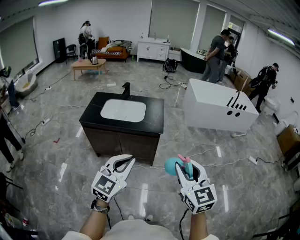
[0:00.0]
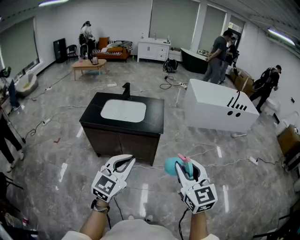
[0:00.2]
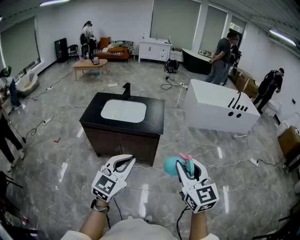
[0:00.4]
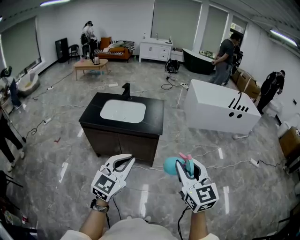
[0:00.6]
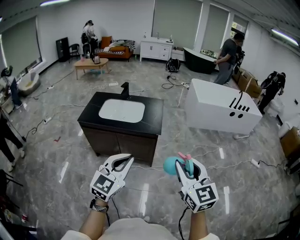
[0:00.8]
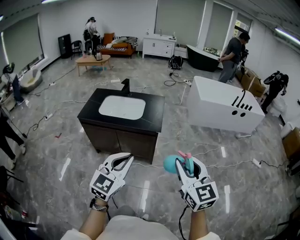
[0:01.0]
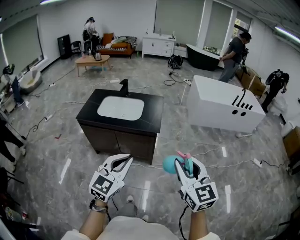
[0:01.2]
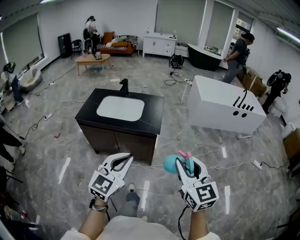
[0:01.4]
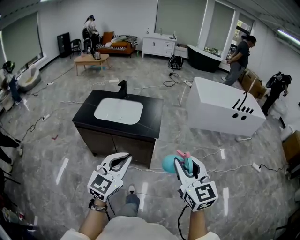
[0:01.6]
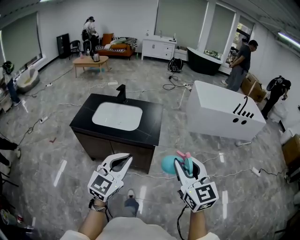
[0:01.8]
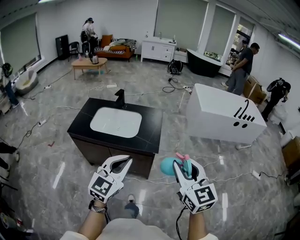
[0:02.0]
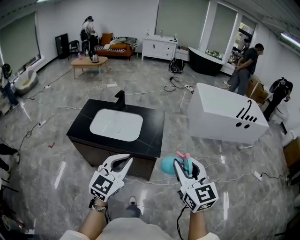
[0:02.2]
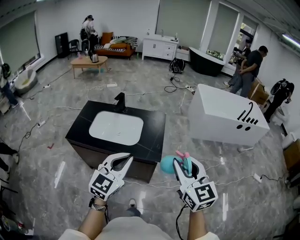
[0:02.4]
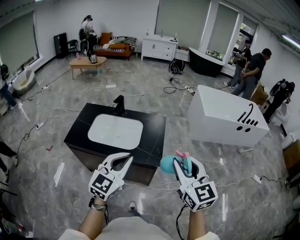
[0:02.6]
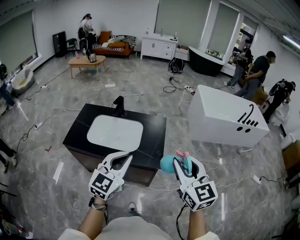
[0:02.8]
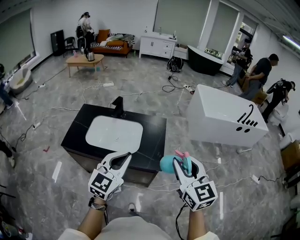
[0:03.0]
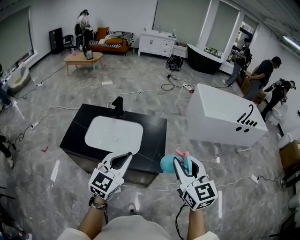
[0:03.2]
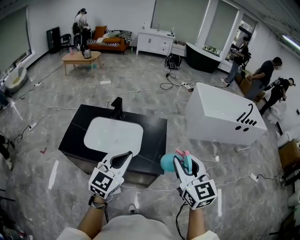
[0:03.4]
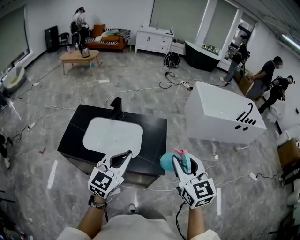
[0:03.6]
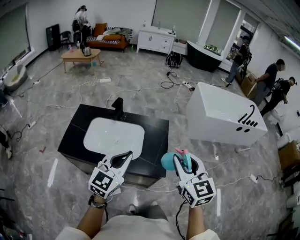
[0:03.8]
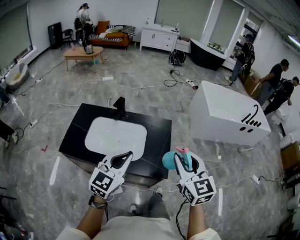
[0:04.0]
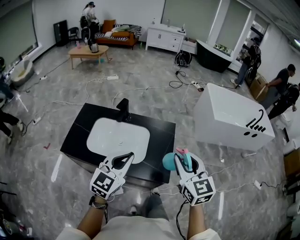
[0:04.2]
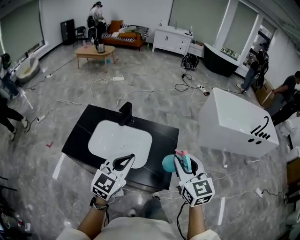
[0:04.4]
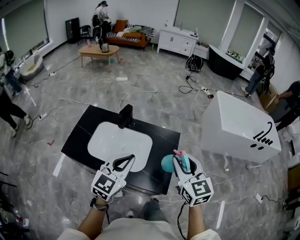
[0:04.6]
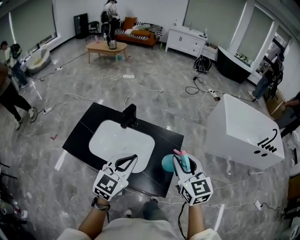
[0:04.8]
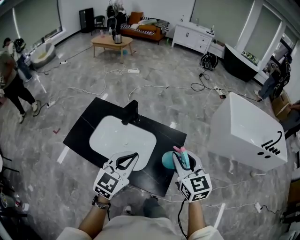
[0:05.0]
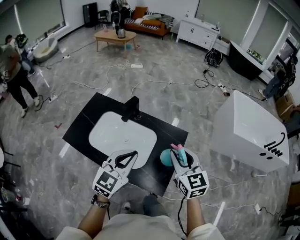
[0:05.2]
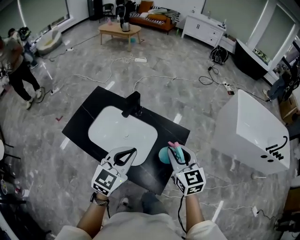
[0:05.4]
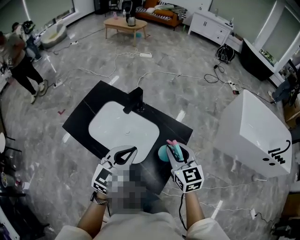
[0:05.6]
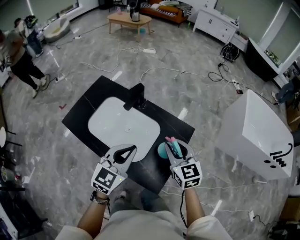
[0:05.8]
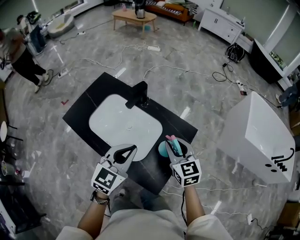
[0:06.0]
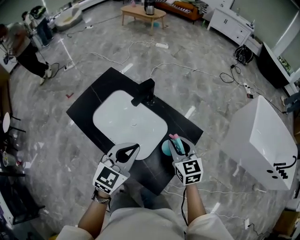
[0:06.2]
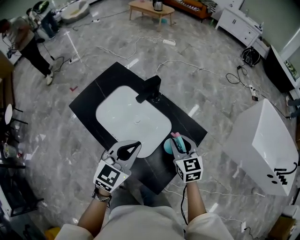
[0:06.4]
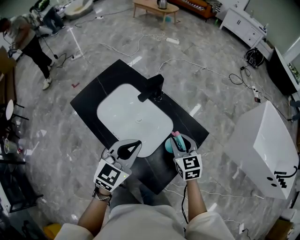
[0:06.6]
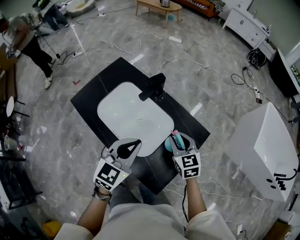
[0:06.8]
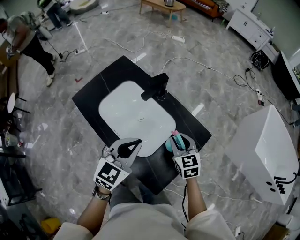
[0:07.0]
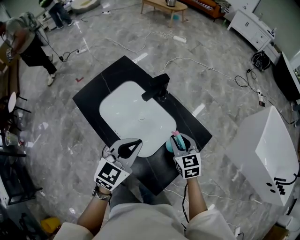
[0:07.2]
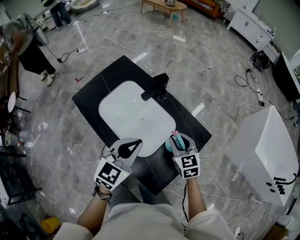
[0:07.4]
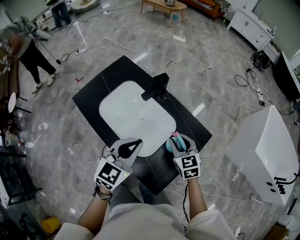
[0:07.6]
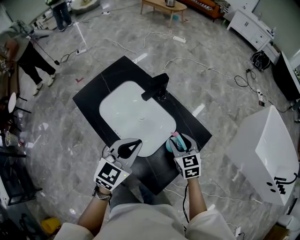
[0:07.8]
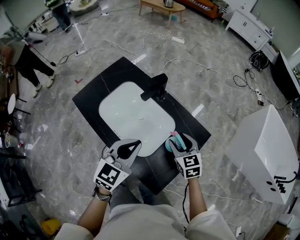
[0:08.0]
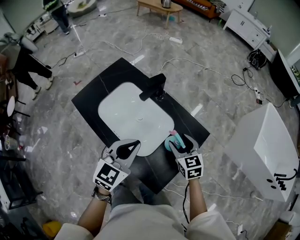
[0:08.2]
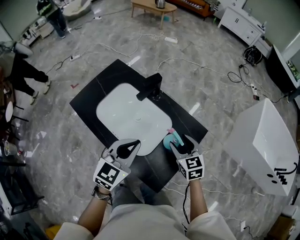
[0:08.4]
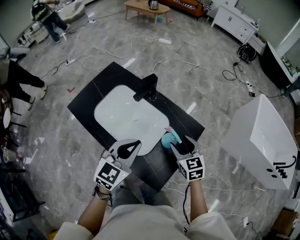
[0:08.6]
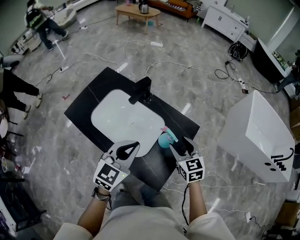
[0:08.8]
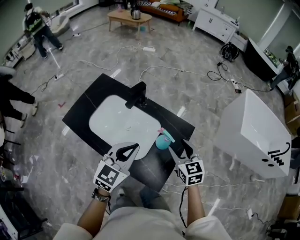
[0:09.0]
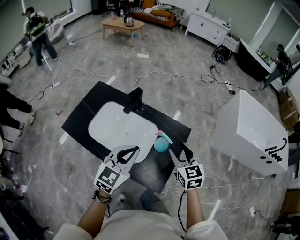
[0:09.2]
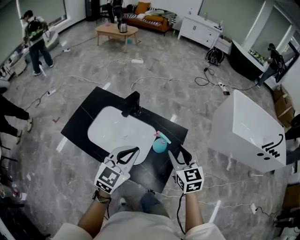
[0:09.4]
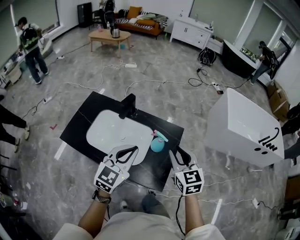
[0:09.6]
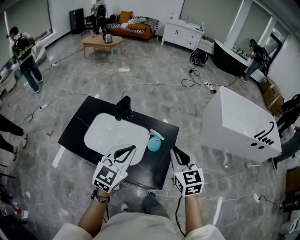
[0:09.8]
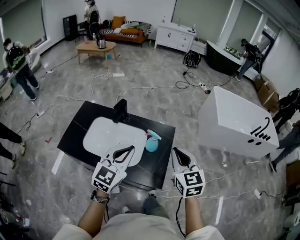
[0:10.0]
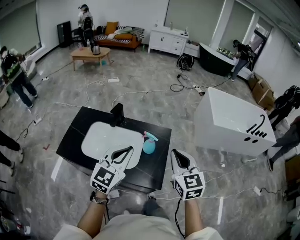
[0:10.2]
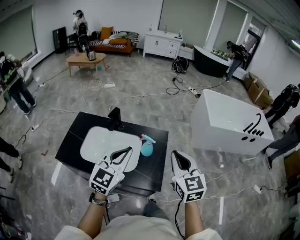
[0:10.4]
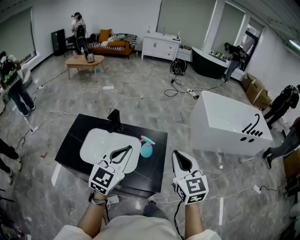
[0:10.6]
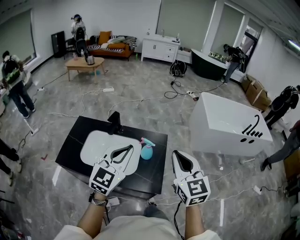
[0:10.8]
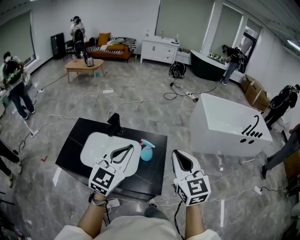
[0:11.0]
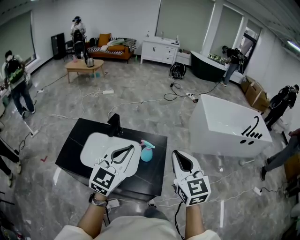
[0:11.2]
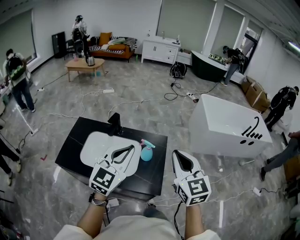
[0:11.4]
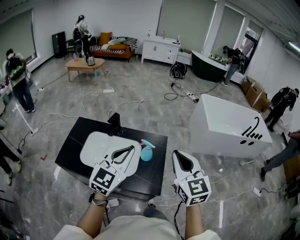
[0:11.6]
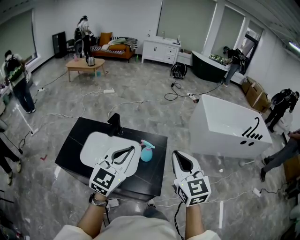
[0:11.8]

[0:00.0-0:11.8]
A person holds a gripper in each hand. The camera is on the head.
0:00.0 to 0:01.4: Both grippers move forward and to the right, some 10 cm.
0:01.4 to 0:03.0: The grippers both shift forward by approximately 30 cm.
0:03.0 to 0:04.4: The grippers both shift forward by approximately 15 cm.
0:04.4 to 0:06.0: The left gripper travels forward and downward by approximately 15 cm, and turns by about 20 degrees, while the right gripper travels forward and downward by about 25 cm, and rotates some 30 degrees.
0:06.0 to 0:07.4: The right gripper moves downward, roughly 10 cm.
0:07.4 to 0:08.8: The right gripper goes approximately 5 cm backward, and opens.
0:08.8 to 0:10.4: The right gripper moves upward and backward, some 30 cm, changes its angle by about 30 degrees, and closes. Meanwhile the left gripper heads upward and backward, covering approximately 15 cm, and rotates about 20 degrees.
0:10.4 to 0:11.8: There are only small adjustments of the grippers.

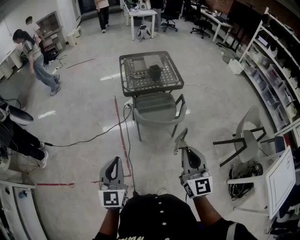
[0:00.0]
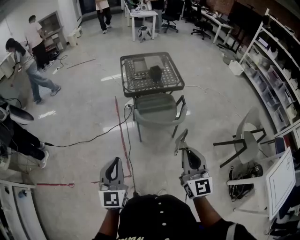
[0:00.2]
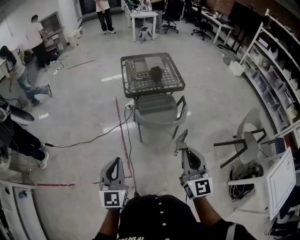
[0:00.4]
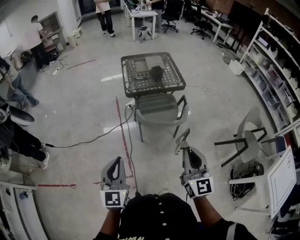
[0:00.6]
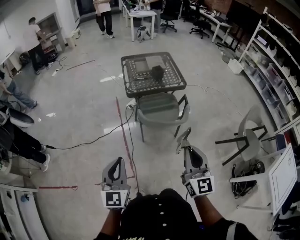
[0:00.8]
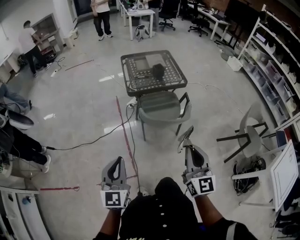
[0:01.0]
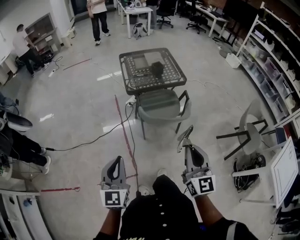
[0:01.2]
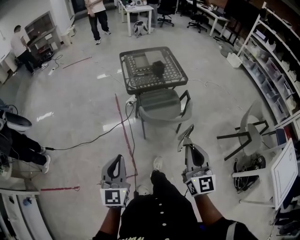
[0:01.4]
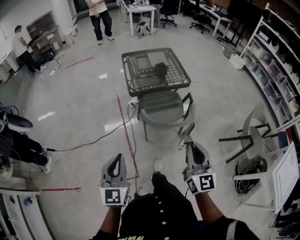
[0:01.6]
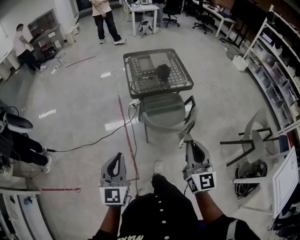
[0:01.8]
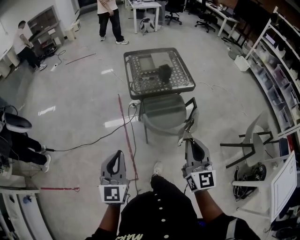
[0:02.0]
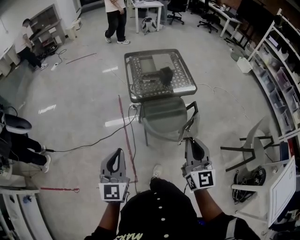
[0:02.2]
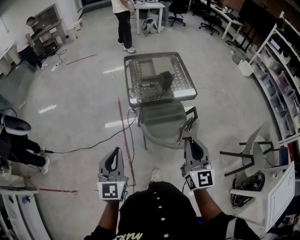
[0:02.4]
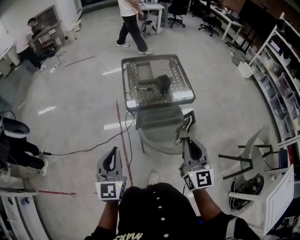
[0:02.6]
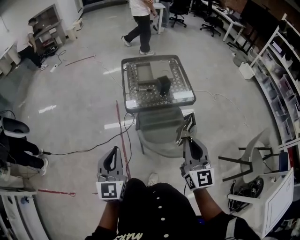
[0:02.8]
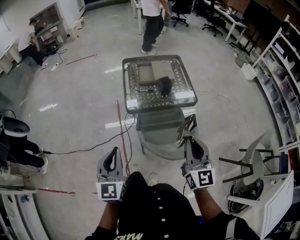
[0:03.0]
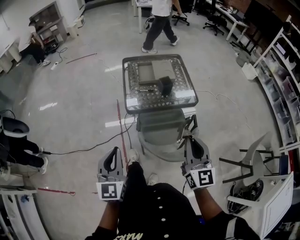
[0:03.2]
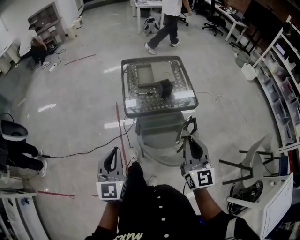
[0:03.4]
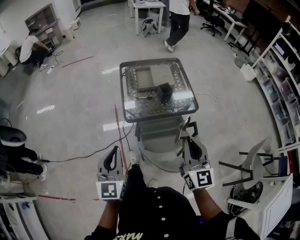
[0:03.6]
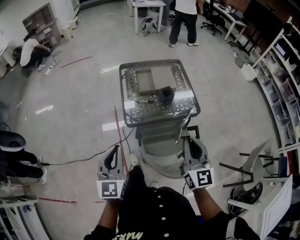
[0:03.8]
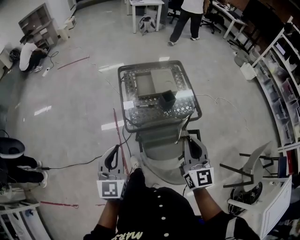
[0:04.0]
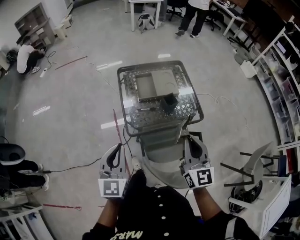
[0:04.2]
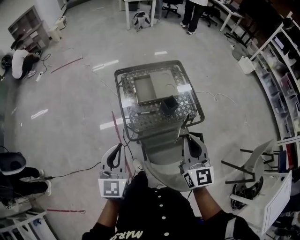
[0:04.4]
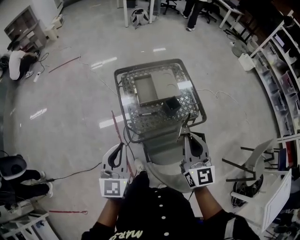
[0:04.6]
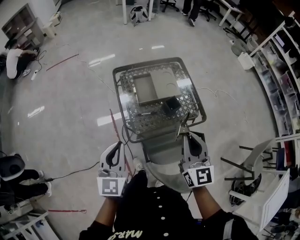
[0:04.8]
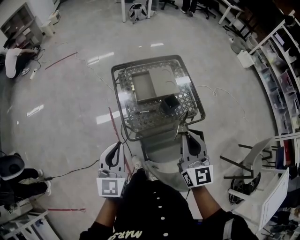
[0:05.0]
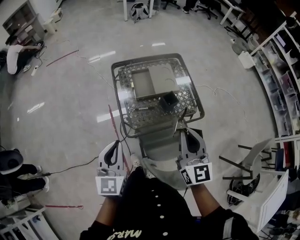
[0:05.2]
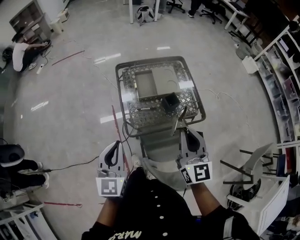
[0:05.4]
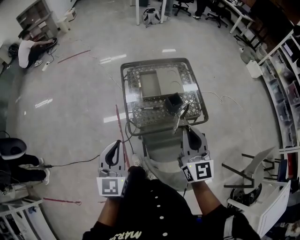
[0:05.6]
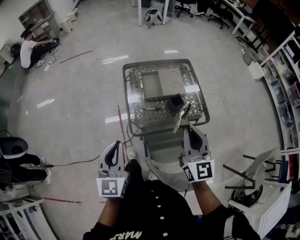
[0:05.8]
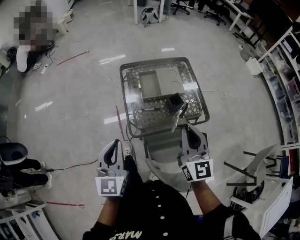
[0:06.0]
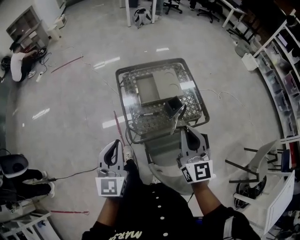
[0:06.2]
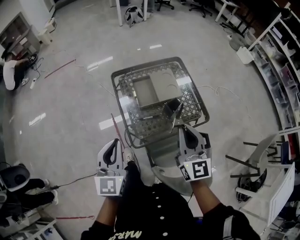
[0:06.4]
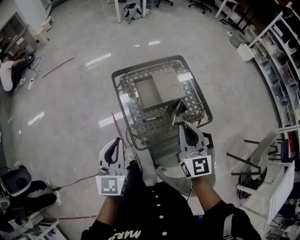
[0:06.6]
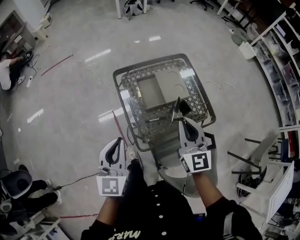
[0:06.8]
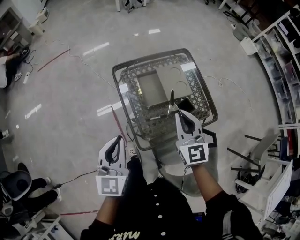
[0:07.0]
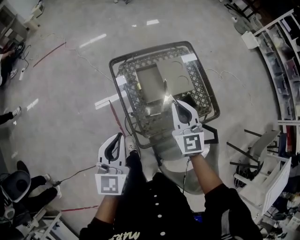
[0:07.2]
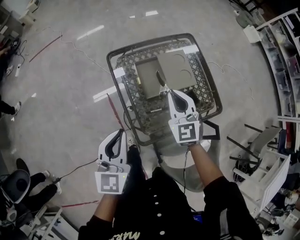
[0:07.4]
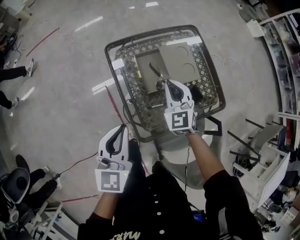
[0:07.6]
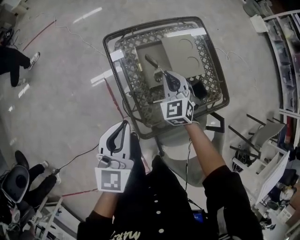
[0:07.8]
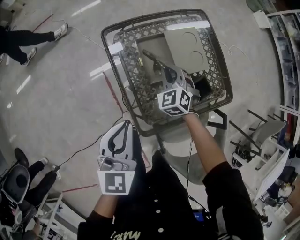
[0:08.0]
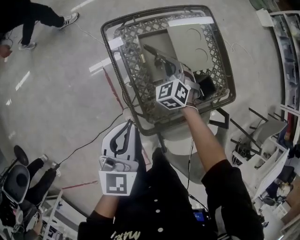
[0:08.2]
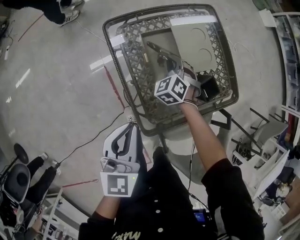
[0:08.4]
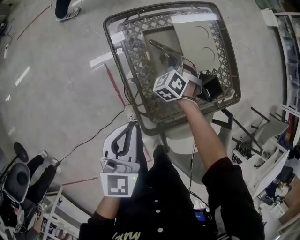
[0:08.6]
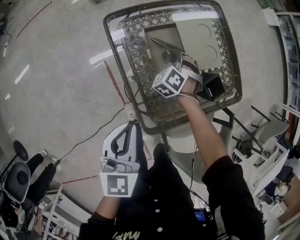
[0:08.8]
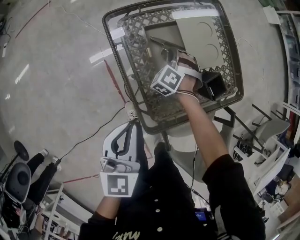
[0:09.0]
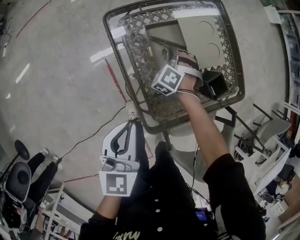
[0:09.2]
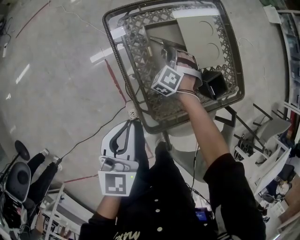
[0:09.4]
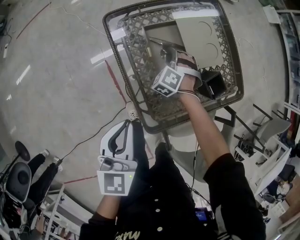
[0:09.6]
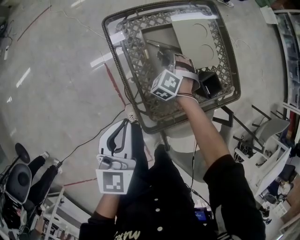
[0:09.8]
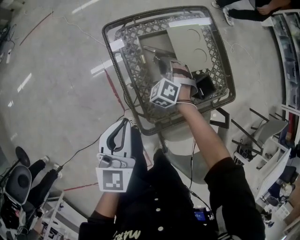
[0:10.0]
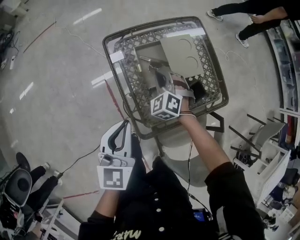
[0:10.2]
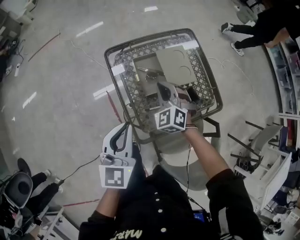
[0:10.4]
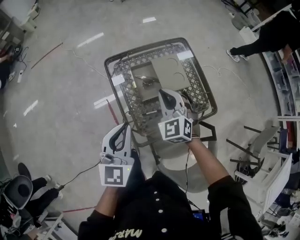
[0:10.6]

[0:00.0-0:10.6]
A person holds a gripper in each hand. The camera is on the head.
0:00.0 to 0:01.6: Both grippers move forward and to the left, about 10 cm.
0:01.6 to 0:03.0: Both grippers move forward, roughly 25 cm.
0:03.0 to 0:04.6: Both grippers move forward, roughly 30 cm.
0:04.6 to 0:06.0: There are only small adjustments of the grippers.
0:06.0 to 0:07.6: Both grippers move forward and downward, about 35 cm. The right gripper swivels roughly 40 degrees.
0:07.6 to 0:09.0: The right gripper heads downward, covering about 25 cm, and changes its angle by approximately 50 degrees. Meanwhile the left gripper moves downward, about 10 cm.
0:09.0 to 0:10.6: The left gripper is displaced upward by some 15 cm. Meanwhile the right gripper moves upward and backward, roughly 30 cm, swivels approximately 40 degrees, and opens, then closes once more.

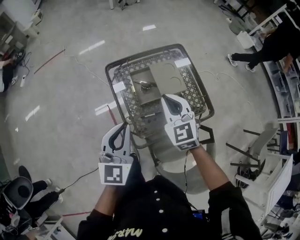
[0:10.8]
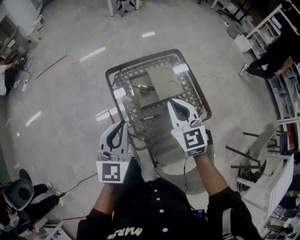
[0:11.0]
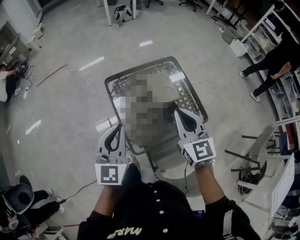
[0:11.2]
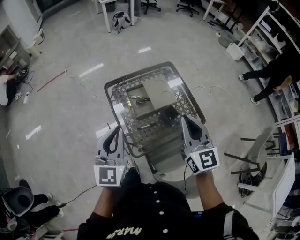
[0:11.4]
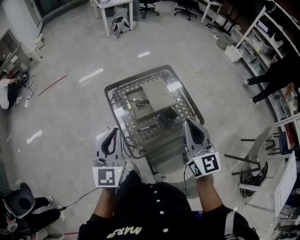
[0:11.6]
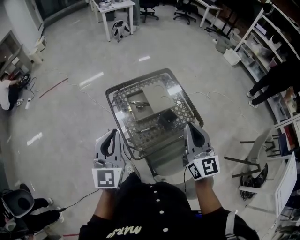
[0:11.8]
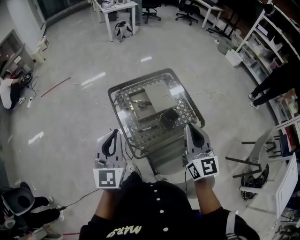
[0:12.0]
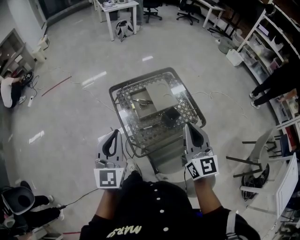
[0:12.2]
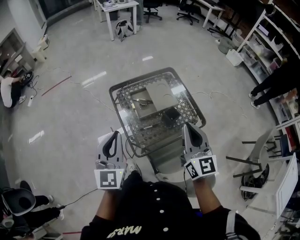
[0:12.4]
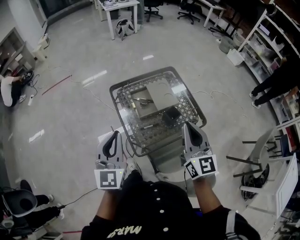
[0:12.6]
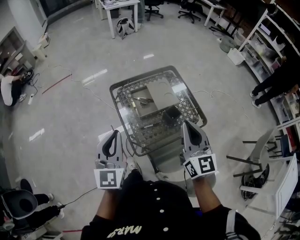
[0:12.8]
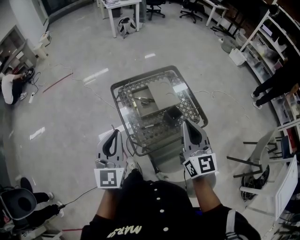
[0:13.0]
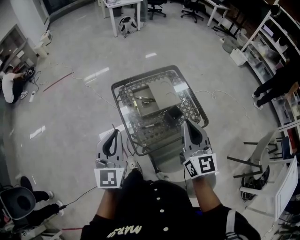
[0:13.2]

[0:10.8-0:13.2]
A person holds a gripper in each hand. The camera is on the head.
0:10.8 to 0:12.0: The left gripper travels upward and backward by roughly 10 cm, while the right gripper goes roughly 25 cm backward, upward and to the right, and changes its angle by approximately 40 degrees.
0:12.0 to 0:13.2: The grippers make only small movements.
